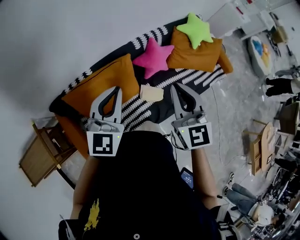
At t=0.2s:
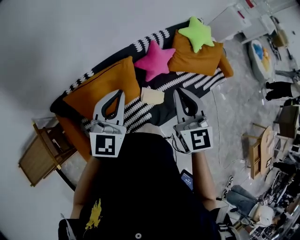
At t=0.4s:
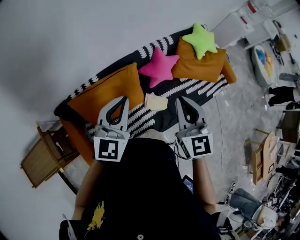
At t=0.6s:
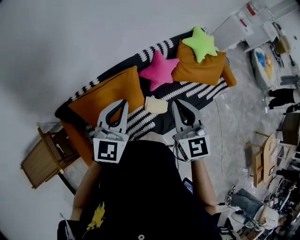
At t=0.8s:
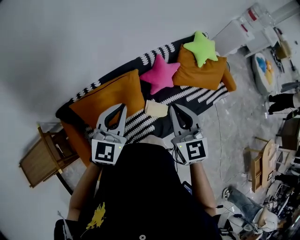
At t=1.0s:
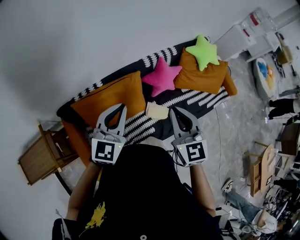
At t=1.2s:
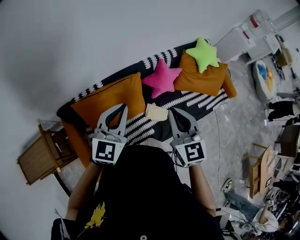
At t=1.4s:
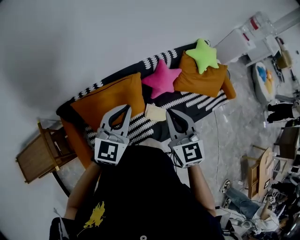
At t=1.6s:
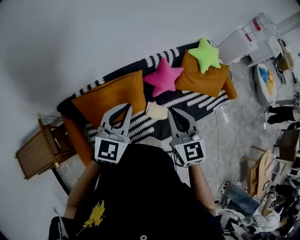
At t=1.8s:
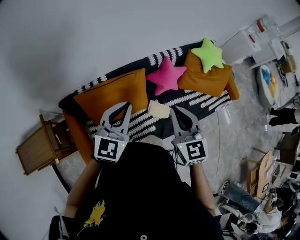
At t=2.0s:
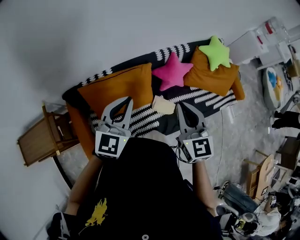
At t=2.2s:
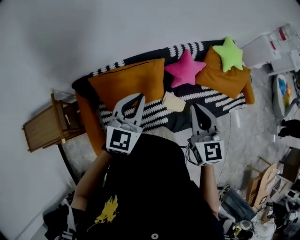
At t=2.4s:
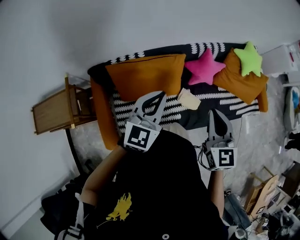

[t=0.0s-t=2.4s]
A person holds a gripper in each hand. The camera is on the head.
t=0.0s to t=1.2s: There are only small adjustments of the grippers.
t=1.2s to t=2.4s: The right gripper moves some 5 cm. Meanwhile the left gripper goes roughly 5 cm backward.

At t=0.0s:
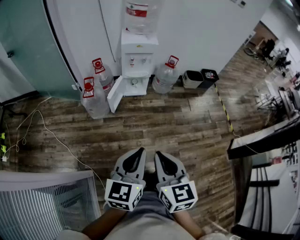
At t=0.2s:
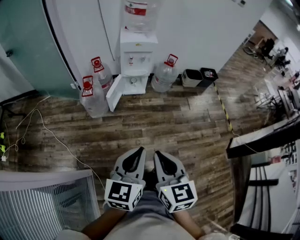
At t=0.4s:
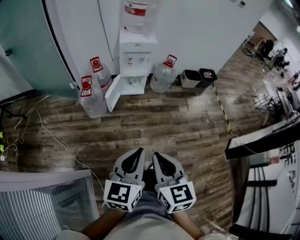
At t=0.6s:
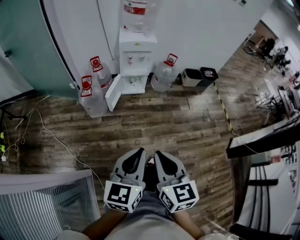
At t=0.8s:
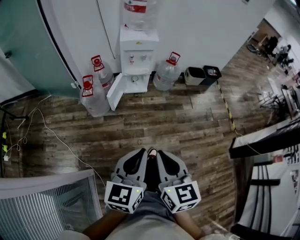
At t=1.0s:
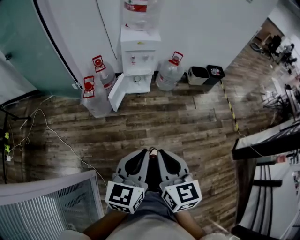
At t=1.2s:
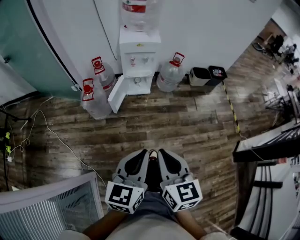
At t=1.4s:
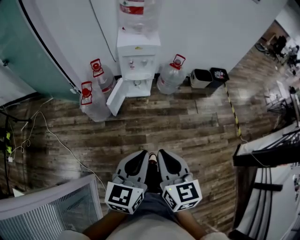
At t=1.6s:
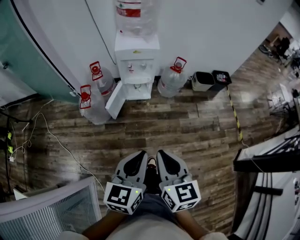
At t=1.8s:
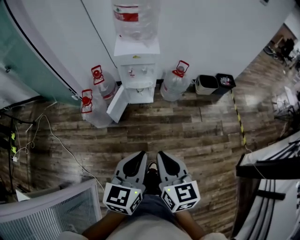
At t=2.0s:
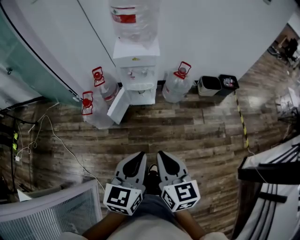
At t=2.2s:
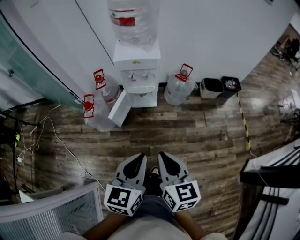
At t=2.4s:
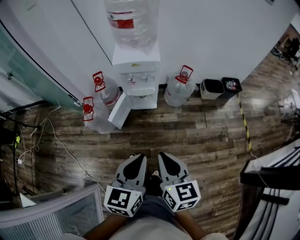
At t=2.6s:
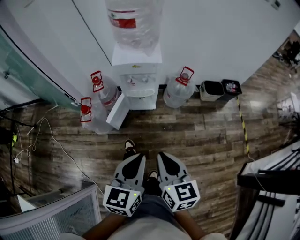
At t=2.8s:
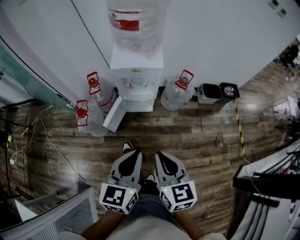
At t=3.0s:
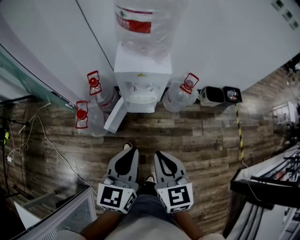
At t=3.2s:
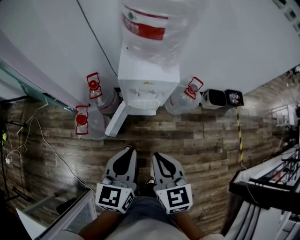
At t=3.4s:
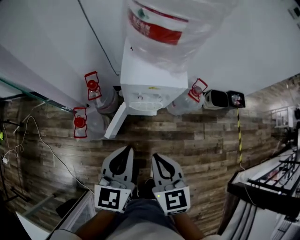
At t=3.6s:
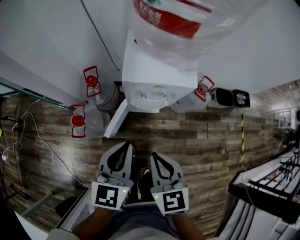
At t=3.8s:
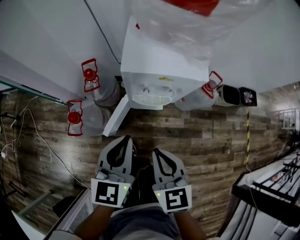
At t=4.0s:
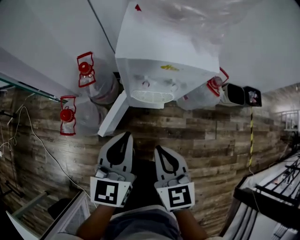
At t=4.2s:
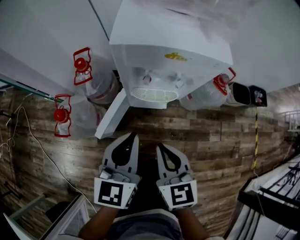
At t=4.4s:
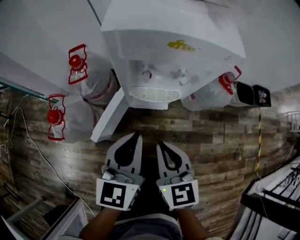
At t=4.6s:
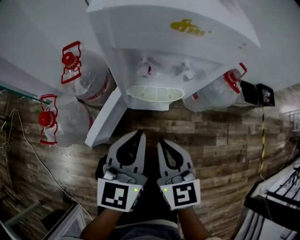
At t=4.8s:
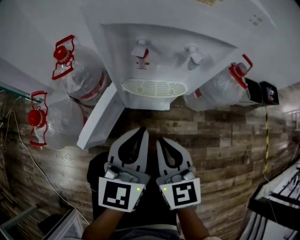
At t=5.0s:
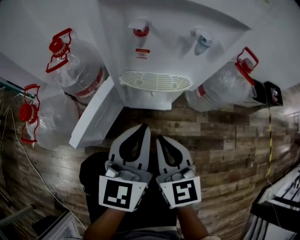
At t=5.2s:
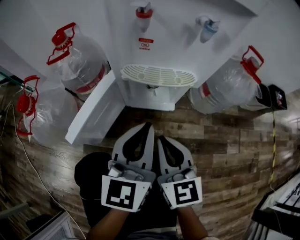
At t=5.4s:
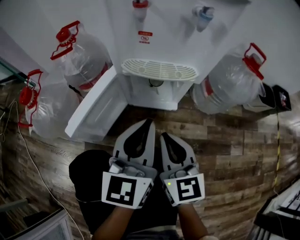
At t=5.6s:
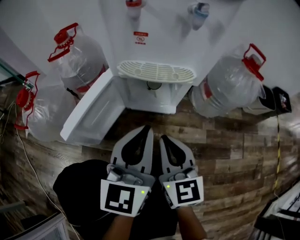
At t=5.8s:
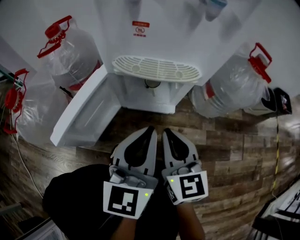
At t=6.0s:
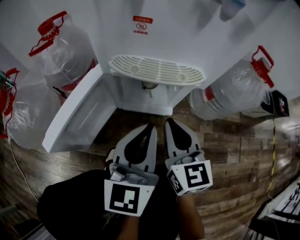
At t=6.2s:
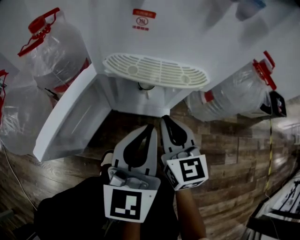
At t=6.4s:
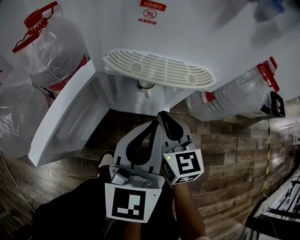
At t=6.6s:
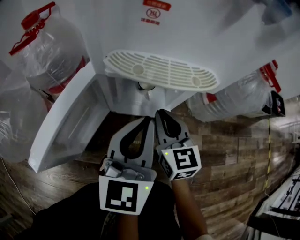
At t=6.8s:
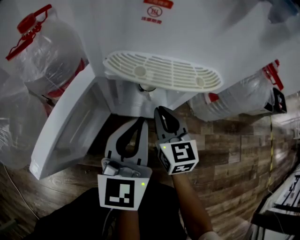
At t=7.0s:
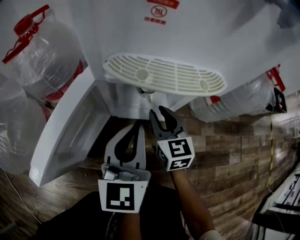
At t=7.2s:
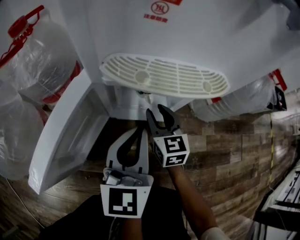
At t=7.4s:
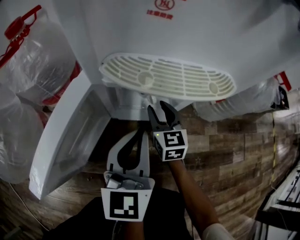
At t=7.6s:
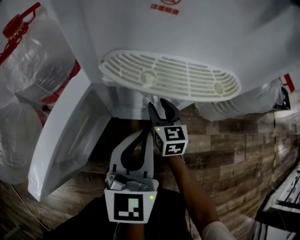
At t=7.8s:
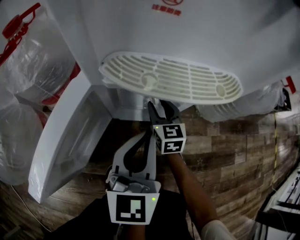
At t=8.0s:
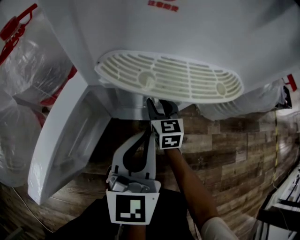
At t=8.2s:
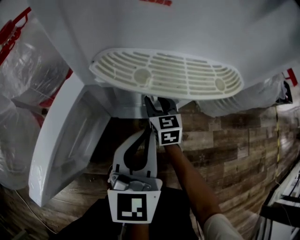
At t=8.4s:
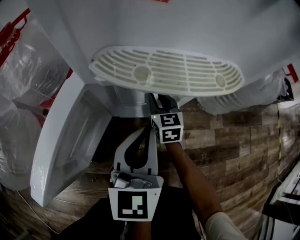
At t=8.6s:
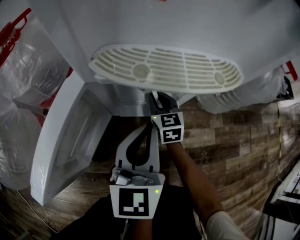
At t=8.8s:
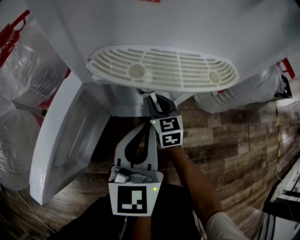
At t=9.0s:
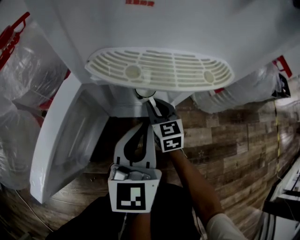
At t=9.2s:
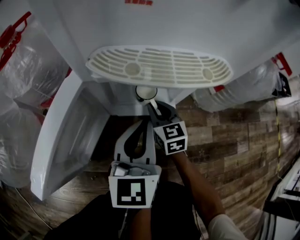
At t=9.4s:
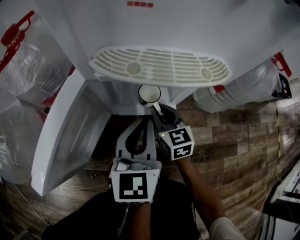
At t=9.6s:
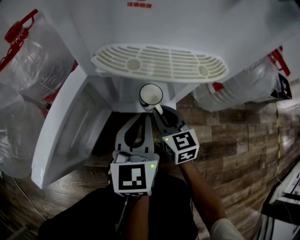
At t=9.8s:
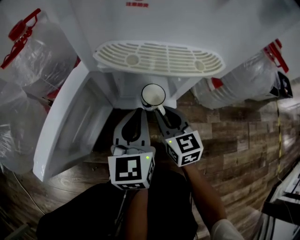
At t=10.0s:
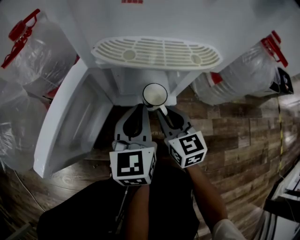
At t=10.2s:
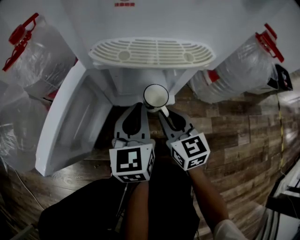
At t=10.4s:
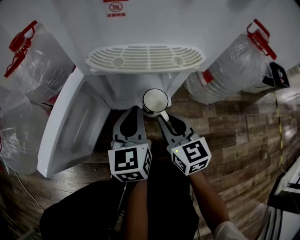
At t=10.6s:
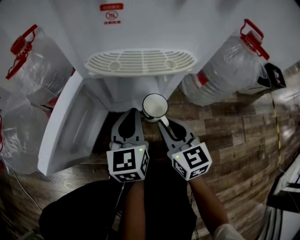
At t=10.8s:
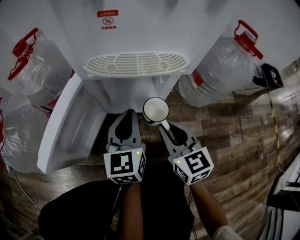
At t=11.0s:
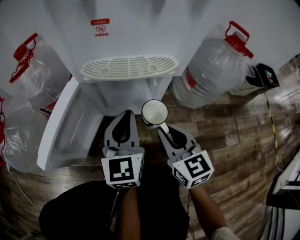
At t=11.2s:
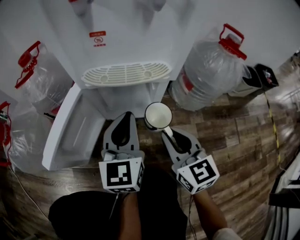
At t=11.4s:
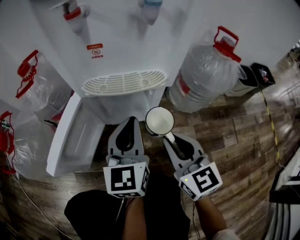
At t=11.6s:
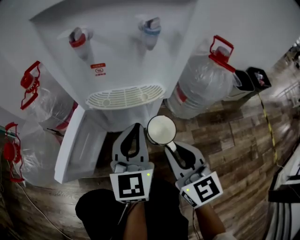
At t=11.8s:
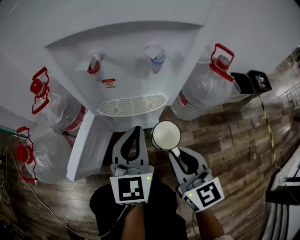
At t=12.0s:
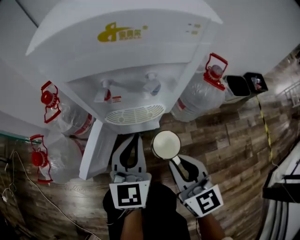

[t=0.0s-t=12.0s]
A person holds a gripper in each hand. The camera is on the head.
t=0.0s to t=1.6s: Both grippers travel together forward, roughly 20 cm.
t=1.6s to t=3.0s: The grippers both shift forward by some 25 cm.
t=3.0s to t=4.4s: The grippers both shift downward and forward by roughly 35 cm.
t=4.4s to t=6.0s: The two grippers go some 25 cm downward.
t=6.0s to t=7.6s: The left gripper goes roughly 10 cm downward and forward. The right gripper shifts roughly 25 cm downward and forward, and opens its fingers.
t=7.6s to t=9.0s: The right gripper closes.
t=9.0s to t=10.4s: The right gripper shifts about 15 cm backward and upward.
t=10.4s to t=12.0s: Both grippers travel together upward, approximately 30 cm.

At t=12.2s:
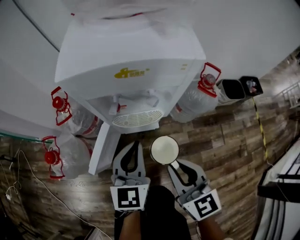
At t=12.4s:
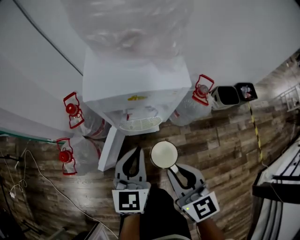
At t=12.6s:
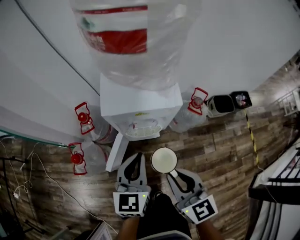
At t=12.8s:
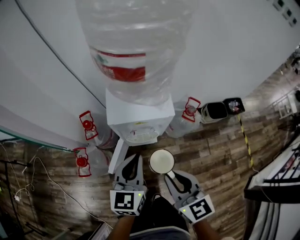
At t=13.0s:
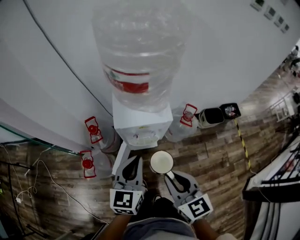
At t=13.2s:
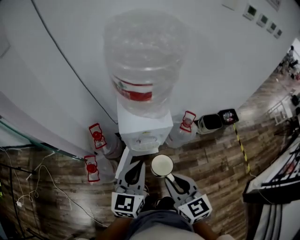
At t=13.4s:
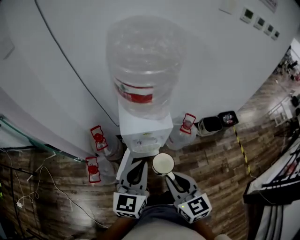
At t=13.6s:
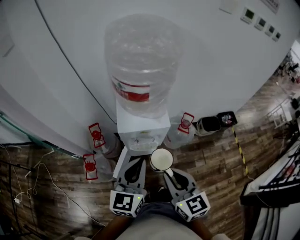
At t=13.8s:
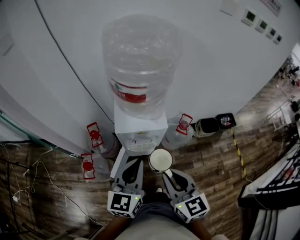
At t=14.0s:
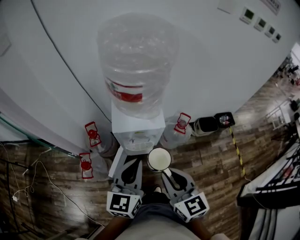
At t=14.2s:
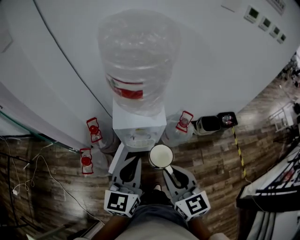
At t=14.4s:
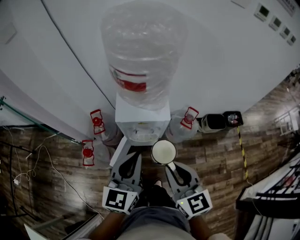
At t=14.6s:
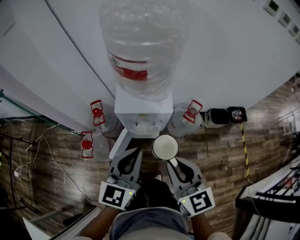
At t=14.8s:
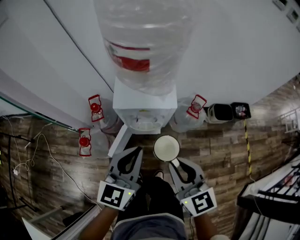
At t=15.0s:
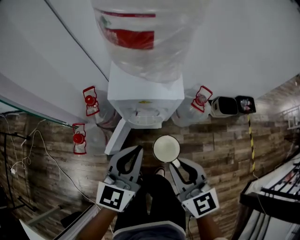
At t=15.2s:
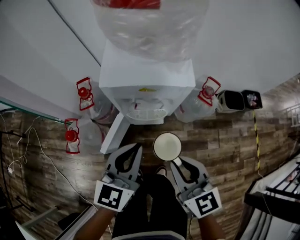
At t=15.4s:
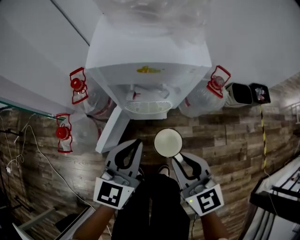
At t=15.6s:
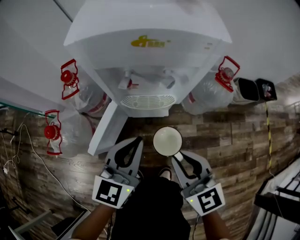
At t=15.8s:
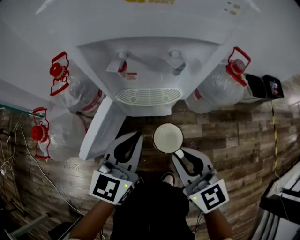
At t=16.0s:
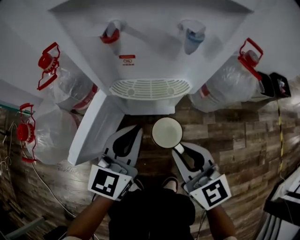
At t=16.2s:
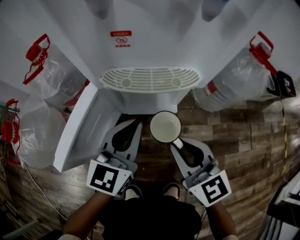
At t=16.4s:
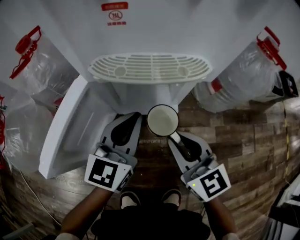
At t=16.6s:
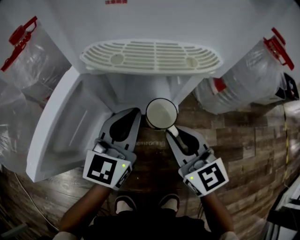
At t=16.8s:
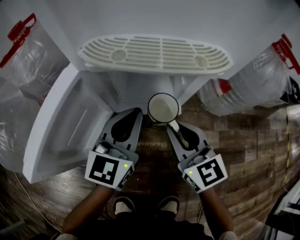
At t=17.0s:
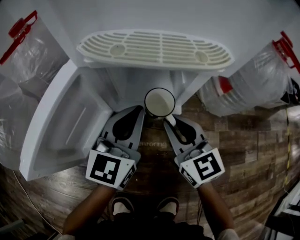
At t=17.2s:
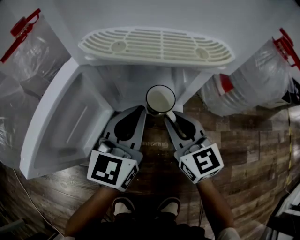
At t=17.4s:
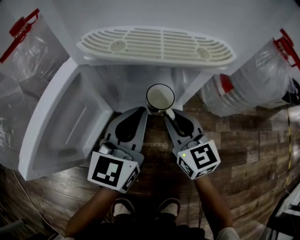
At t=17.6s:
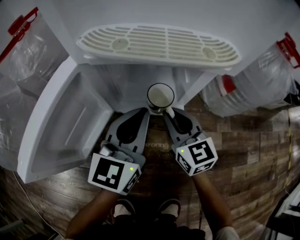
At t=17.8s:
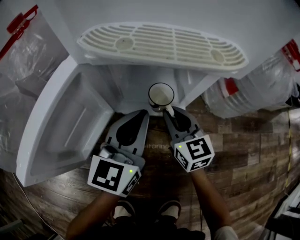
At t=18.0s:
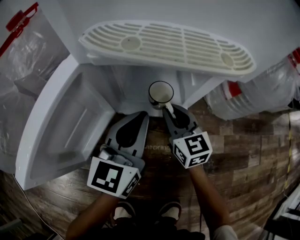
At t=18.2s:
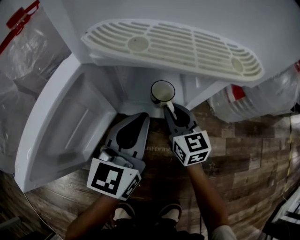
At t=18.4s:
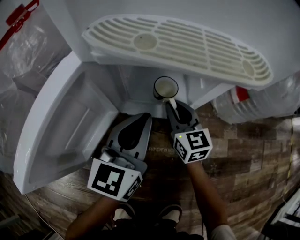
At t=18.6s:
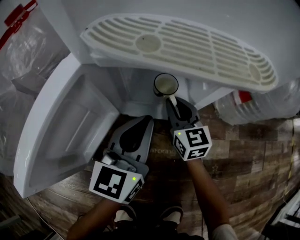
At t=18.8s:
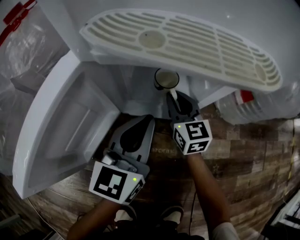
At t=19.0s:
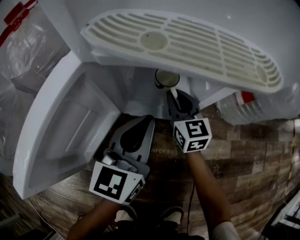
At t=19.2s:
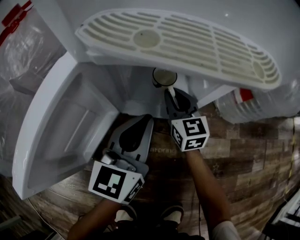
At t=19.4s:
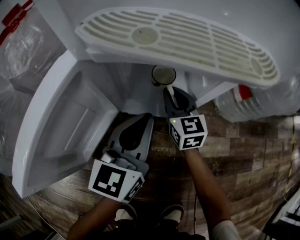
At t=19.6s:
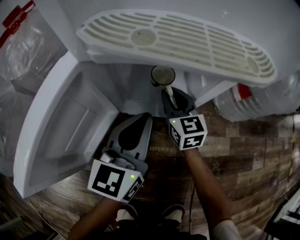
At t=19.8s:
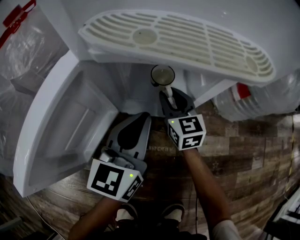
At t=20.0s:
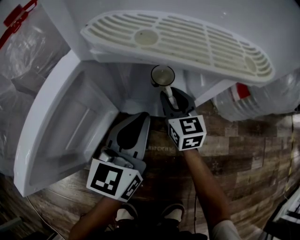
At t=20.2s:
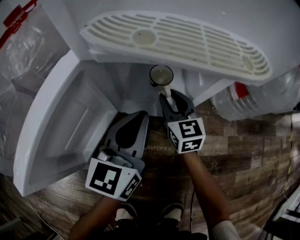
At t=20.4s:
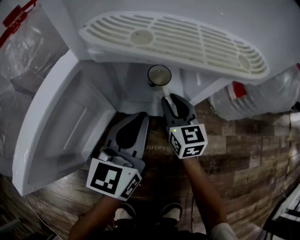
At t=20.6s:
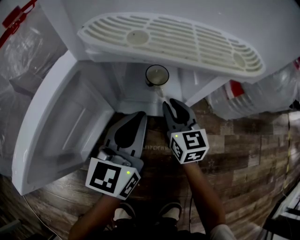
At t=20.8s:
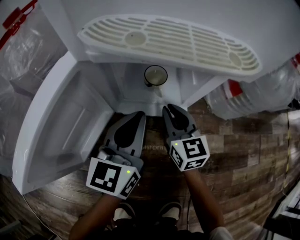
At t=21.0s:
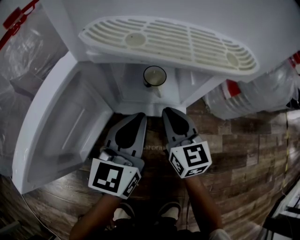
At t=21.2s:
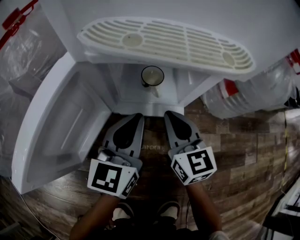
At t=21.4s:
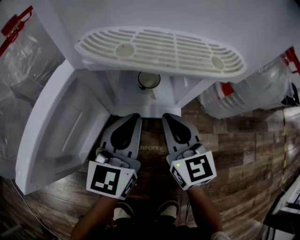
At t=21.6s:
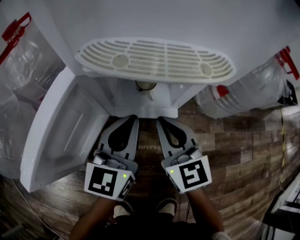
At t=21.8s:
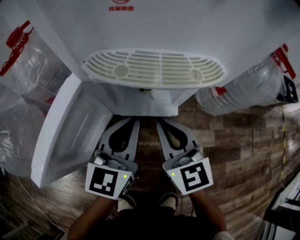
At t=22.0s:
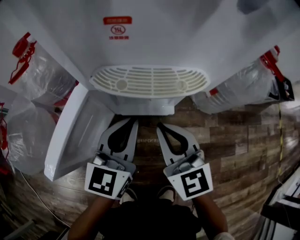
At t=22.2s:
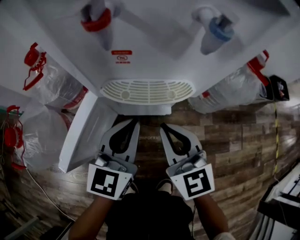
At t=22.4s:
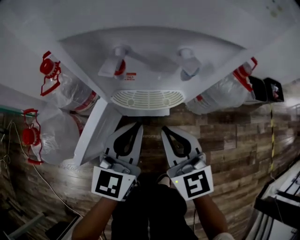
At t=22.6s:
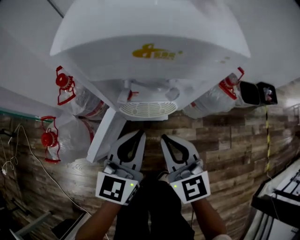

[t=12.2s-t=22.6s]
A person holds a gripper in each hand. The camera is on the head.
t=12.2s to t=13.6s: Both grippers move upward, about 40 cm.
t=13.6s to t=15.2s: Both grippers move downward, approximately 20 cm.
t=15.2s to t=16.6s: The two grippers go some 50 cm downward.
t=16.6s to t=18.2s: The right gripper travels downward and forward by roughly 20 cm.
t=18.2s to t=19.6s: The right gripper is displaced forward by some 5 cm.
t=19.6s to t=21.2s: The right gripper travels backward and upward by roughly 10 cm.
t=21.2s to t=22.6s: Both grippers travel together upward, approximately 35 cm.
